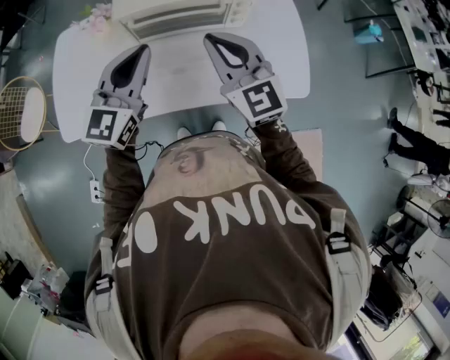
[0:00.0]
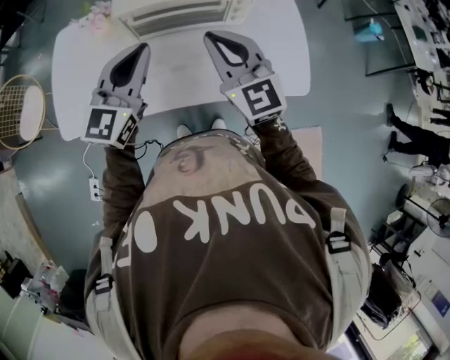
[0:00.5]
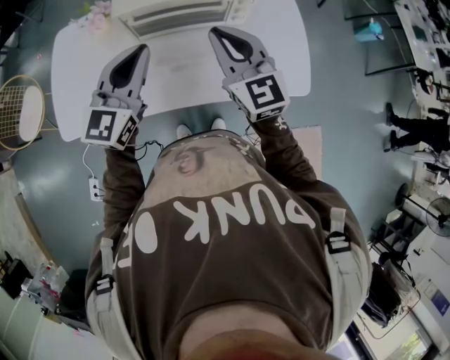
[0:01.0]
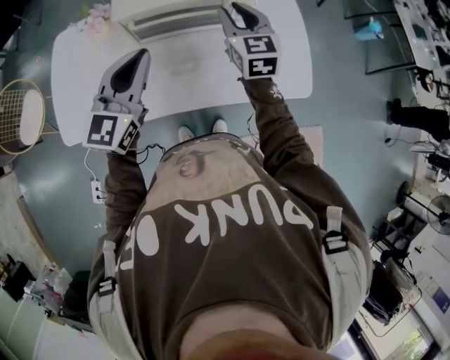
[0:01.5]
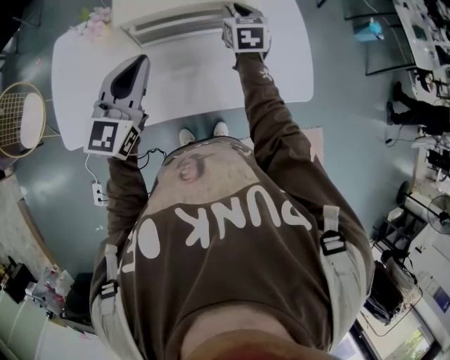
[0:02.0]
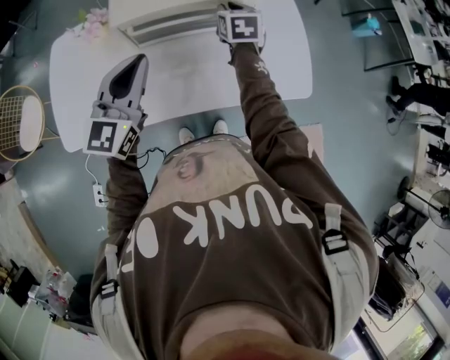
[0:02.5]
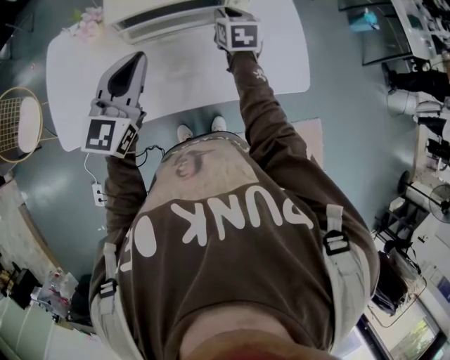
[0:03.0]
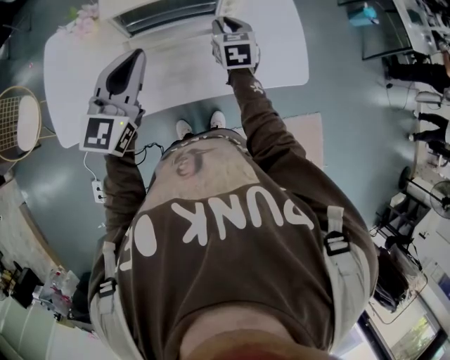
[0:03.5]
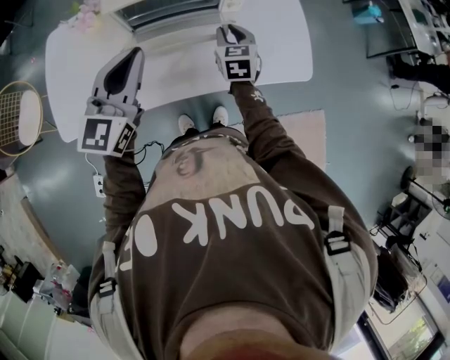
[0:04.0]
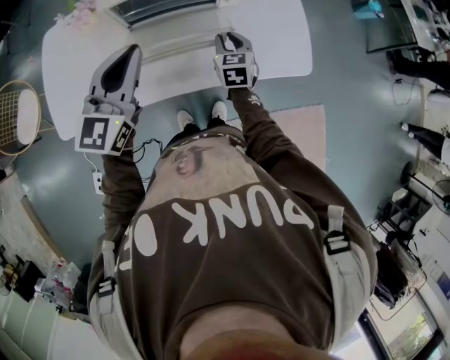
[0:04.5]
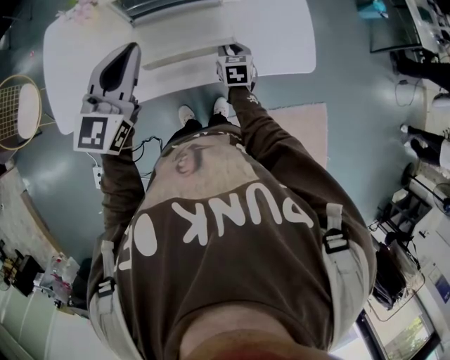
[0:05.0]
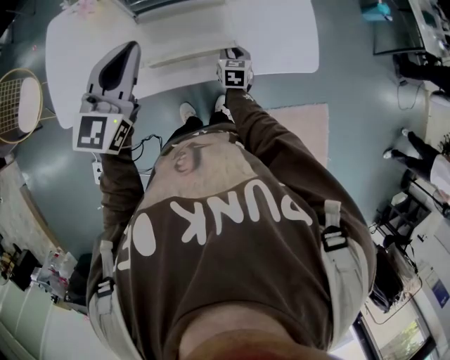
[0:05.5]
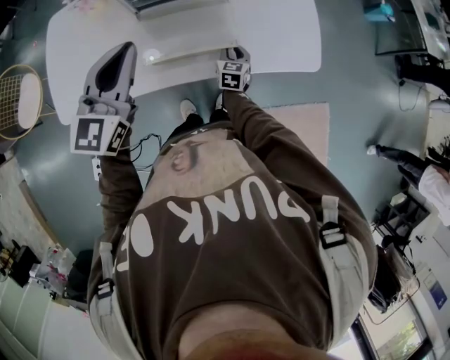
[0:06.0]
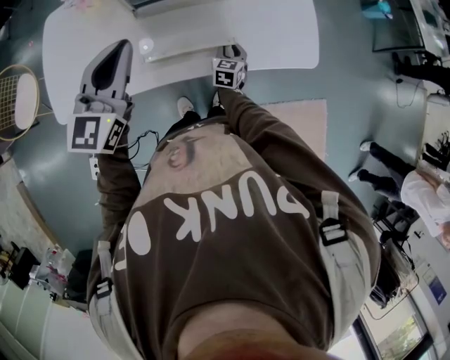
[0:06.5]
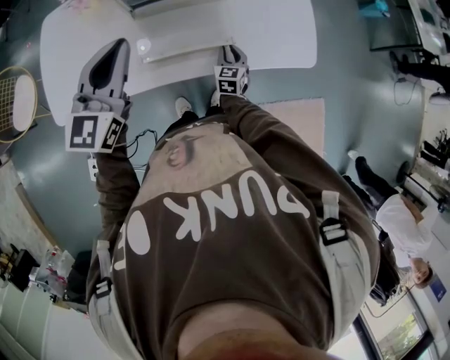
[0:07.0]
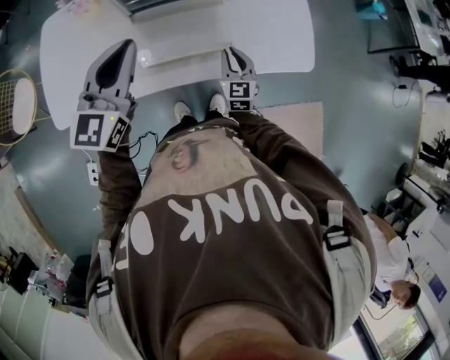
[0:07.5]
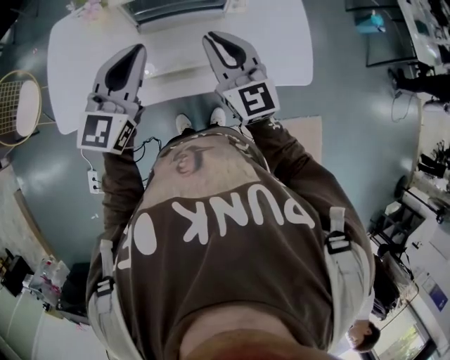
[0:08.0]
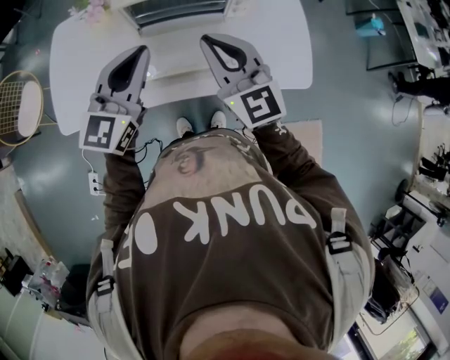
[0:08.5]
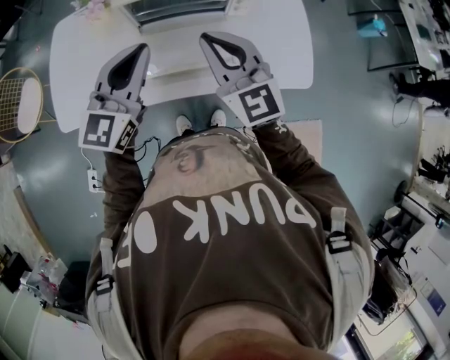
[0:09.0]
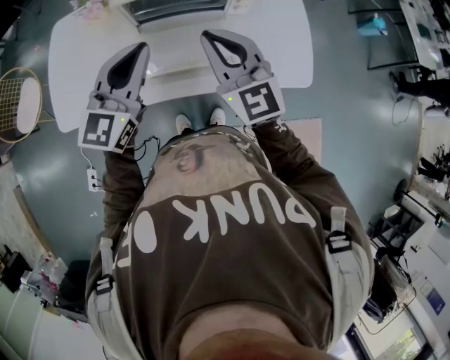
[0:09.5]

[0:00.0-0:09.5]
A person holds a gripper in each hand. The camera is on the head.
0:00.0 to 0:02.0: The right gripper is displaced forward and downward by approximately 25 cm, swivels some 40 degrees, and opens its fingers.
0:02.0 to 0:04.0: The right gripper moves backward and downward, approximately 15 cm.
0:04.0 to 0:05.5: The right gripper travels downward and backward by roughly 15 cm.
0:05.5 to 0:07.5: The right gripper moves upward, roughly 10 cm, and changes its angle by some 20 degrees.
0:07.5 to 0:09.5: The right gripper is displaced upward by approximately 25 cm, and changes its angle by some 30 degrees.

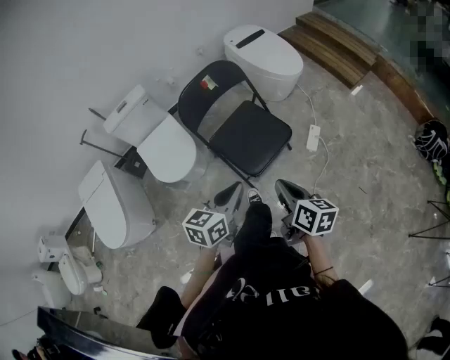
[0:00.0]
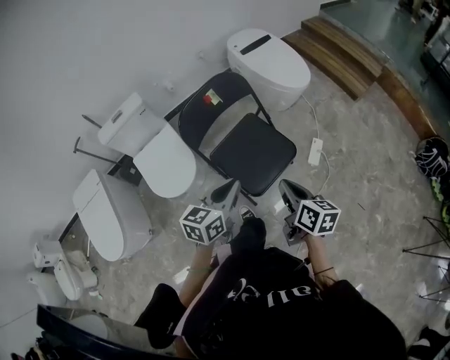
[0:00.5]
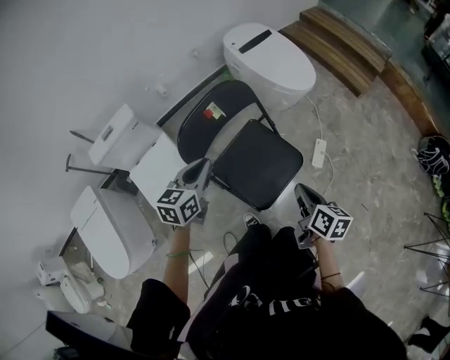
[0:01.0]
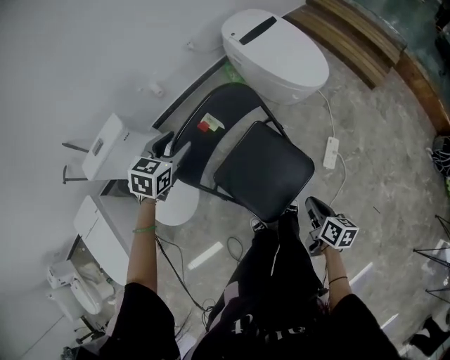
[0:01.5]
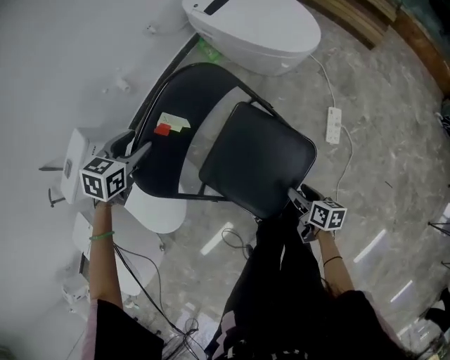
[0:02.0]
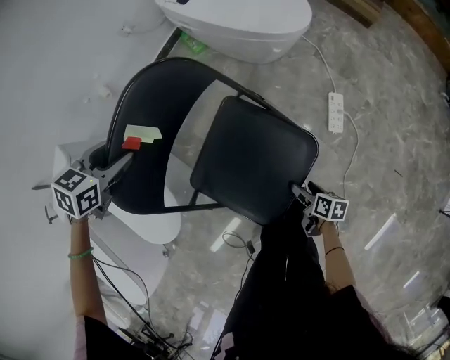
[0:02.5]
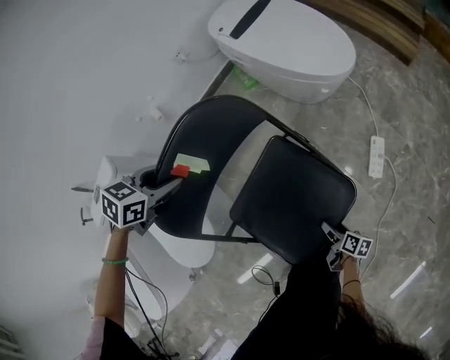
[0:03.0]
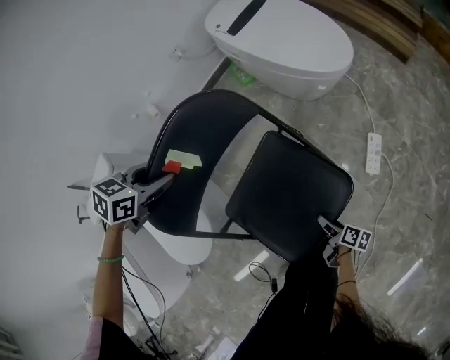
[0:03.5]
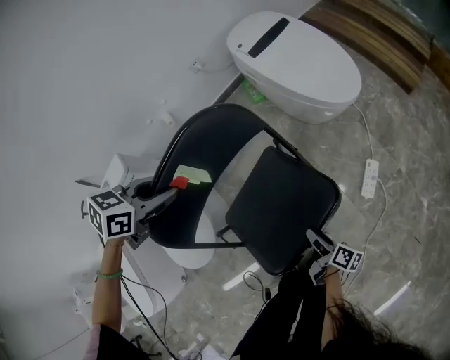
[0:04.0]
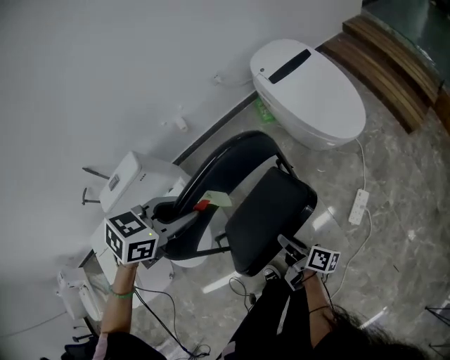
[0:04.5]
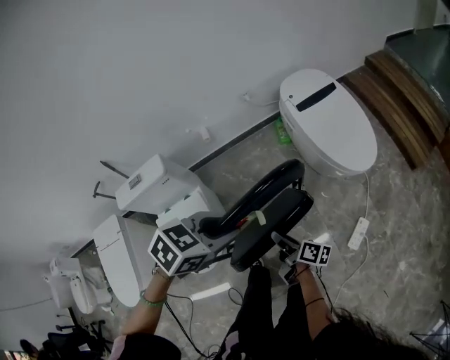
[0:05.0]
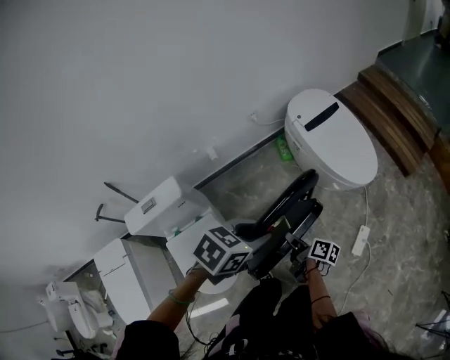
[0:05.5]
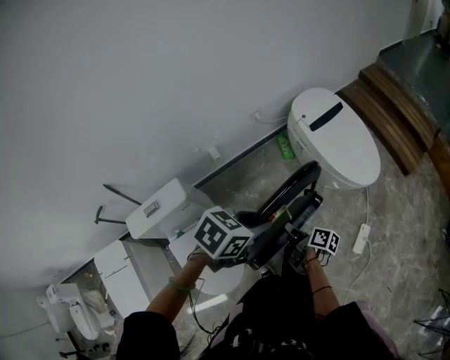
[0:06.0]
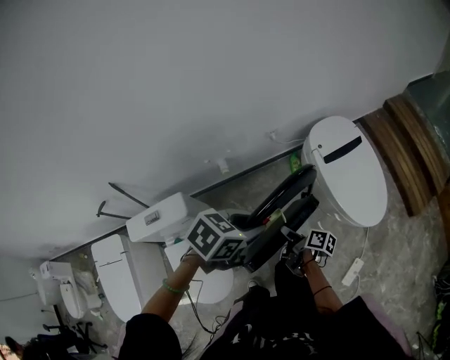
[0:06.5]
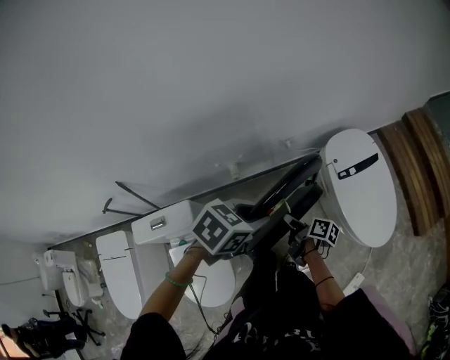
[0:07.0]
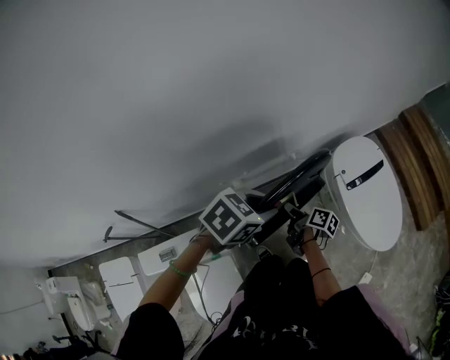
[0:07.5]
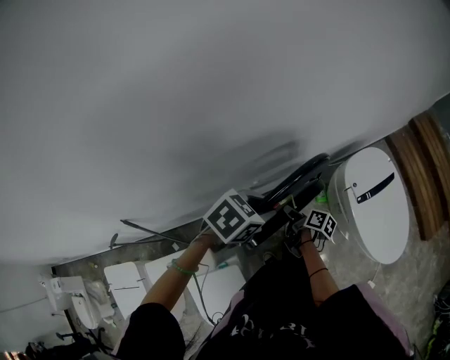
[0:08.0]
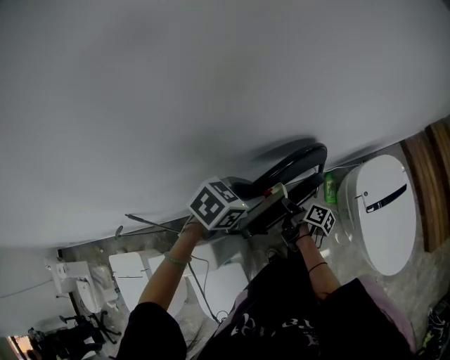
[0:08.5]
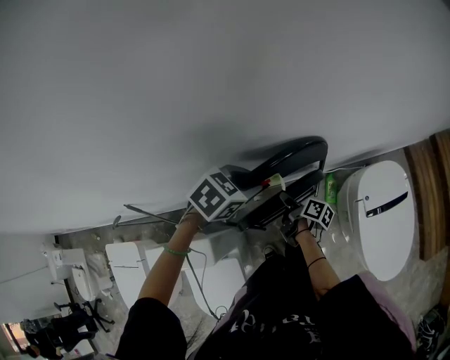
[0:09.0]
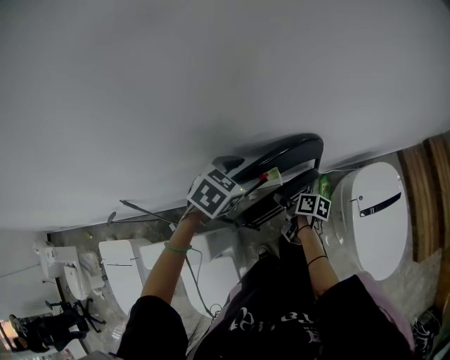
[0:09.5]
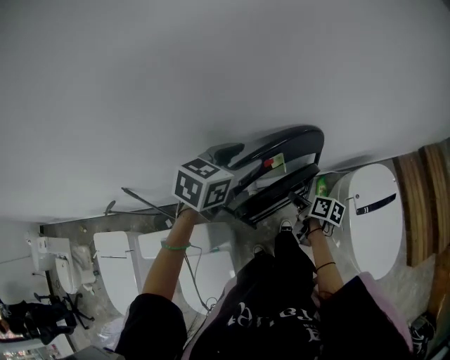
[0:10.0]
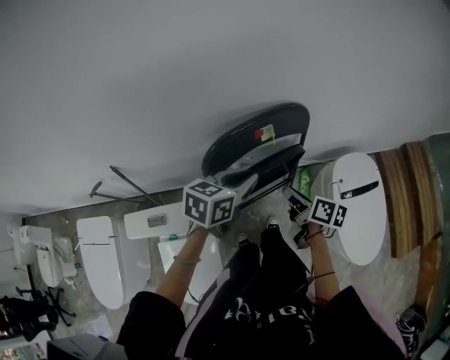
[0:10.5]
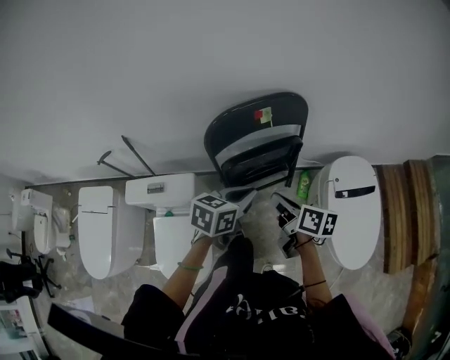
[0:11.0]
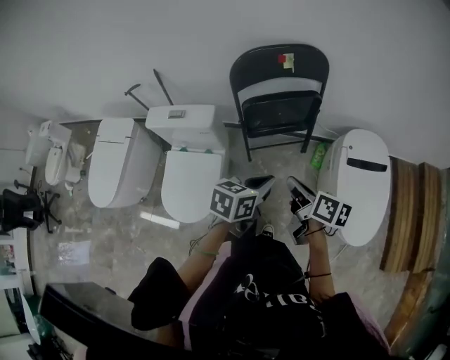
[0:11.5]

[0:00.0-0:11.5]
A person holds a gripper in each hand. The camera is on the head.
0:00.0 to 0:02.0: The left gripper moves approximately 70 cm, angles its fingers downward, by about 30 degrees, and opens.
0:02.0 to 0:04.0: The left gripper heads upward, covering approximately 5 cm, and closes up.
0:04.0 to 0:06.0: The left gripper goes some 15 cm upward.
0:06.0 to 0:07.5: The left gripper moves approximately 35 cm.
0:07.5 to 0:09.5: The left gripper ends up some 25 cm from where it was, swivels about 20 degrees, and opens up.
0:09.5 to 0:11.5: The left gripper reaches approximately 10 cm upward, then returns, rolls counterclockwise, seen from behind, by some 40 degrees, and closes.

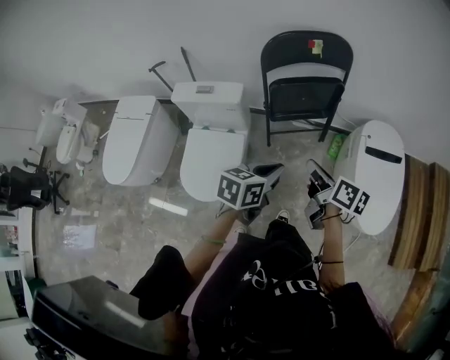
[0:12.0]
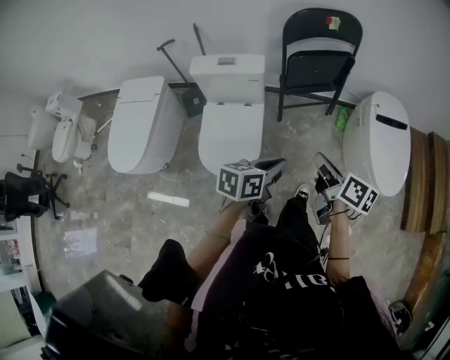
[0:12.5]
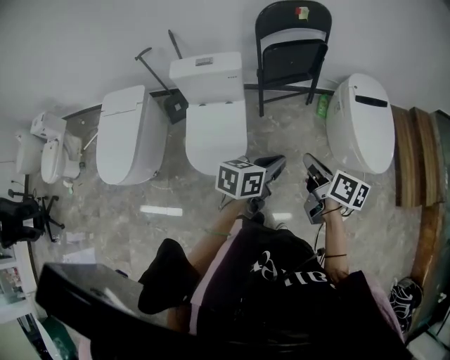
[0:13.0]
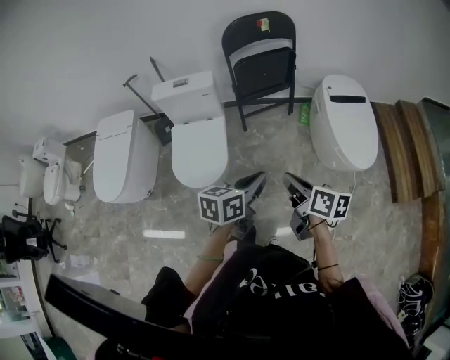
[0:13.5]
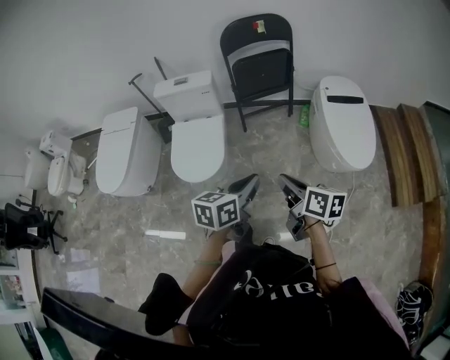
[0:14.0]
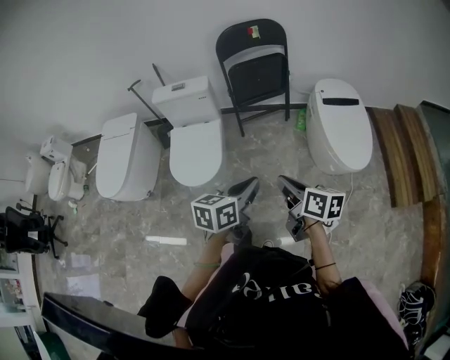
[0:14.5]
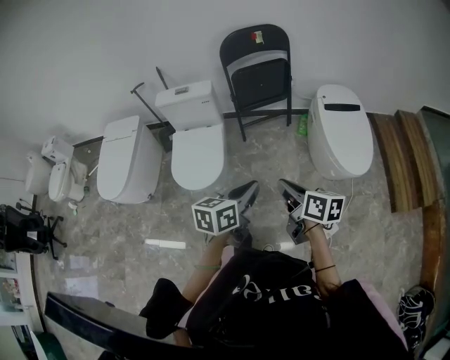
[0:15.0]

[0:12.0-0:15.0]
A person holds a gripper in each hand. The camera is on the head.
0:12.0 to 0:13.5: The left gripper moves some 25 cm.
0:13.5 to 0:15.0: The left gripper moves some 5 cm.

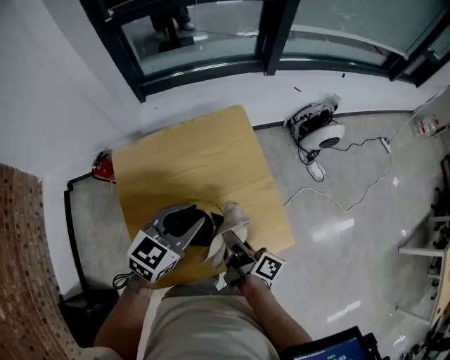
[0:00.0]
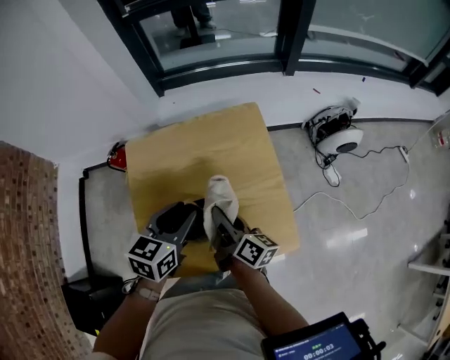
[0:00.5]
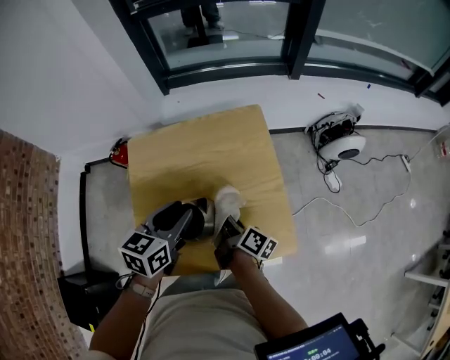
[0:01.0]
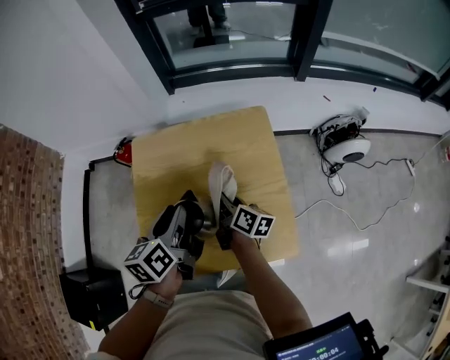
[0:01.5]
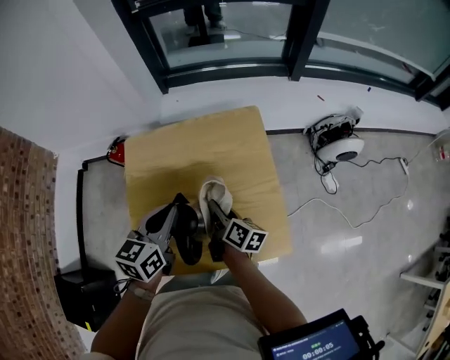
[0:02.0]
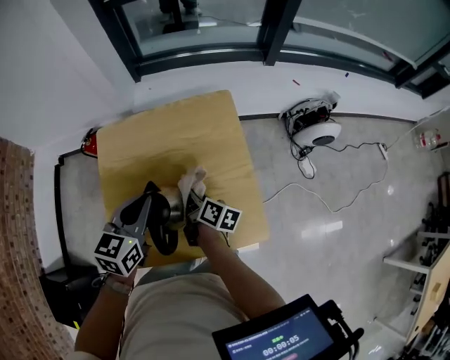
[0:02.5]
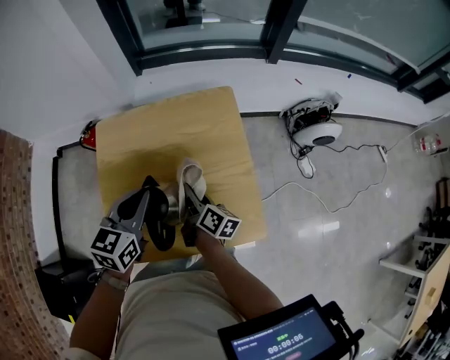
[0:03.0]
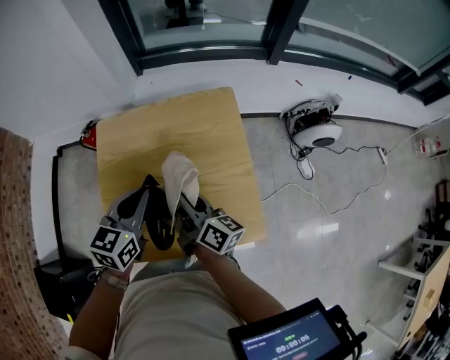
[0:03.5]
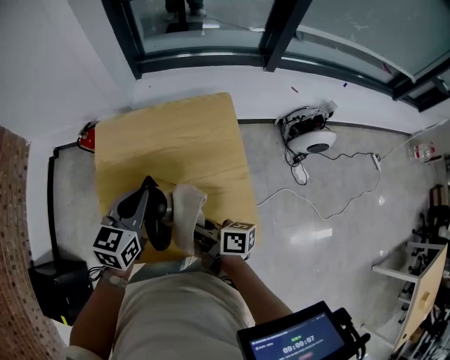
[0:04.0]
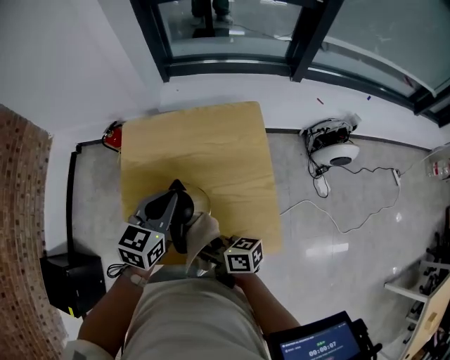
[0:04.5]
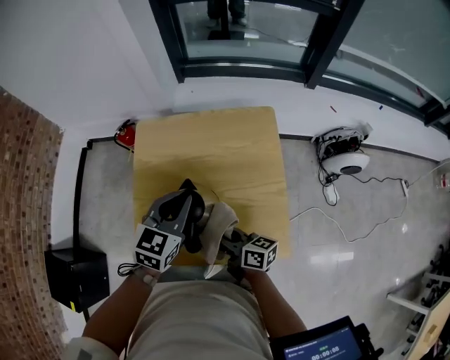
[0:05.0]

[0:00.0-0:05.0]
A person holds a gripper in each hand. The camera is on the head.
0:00.0 to 0:02.5: The left gripper changes its angle by approximately 30 degrees, and closes; the right gripper ends up approximately 10 cm from where it was, and swivels approximately 30 degrees.
0:02.5 to 0:05.0: The right gripper goes roughly 10 cm backward, and rotates approximately 40 degrees.
